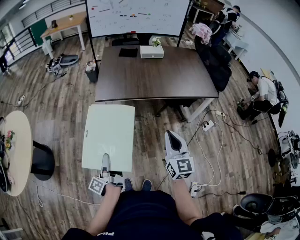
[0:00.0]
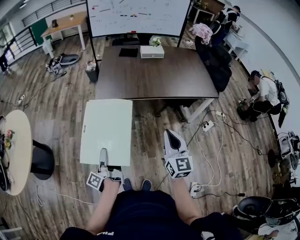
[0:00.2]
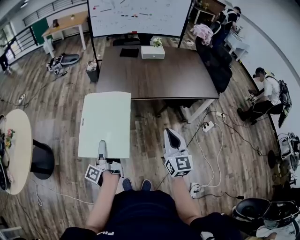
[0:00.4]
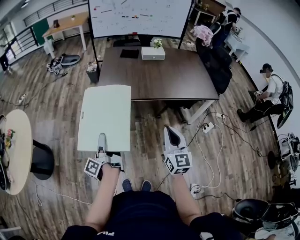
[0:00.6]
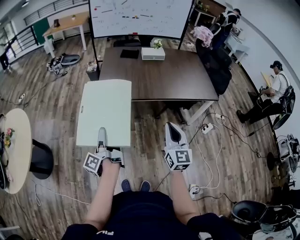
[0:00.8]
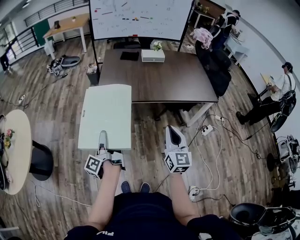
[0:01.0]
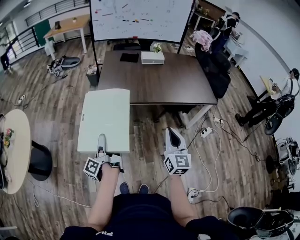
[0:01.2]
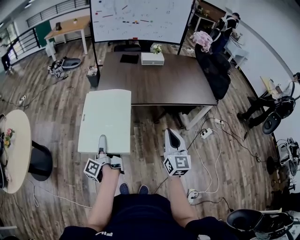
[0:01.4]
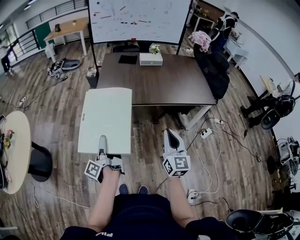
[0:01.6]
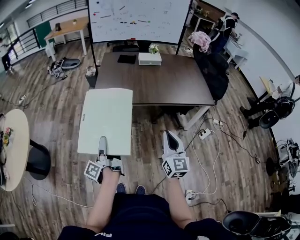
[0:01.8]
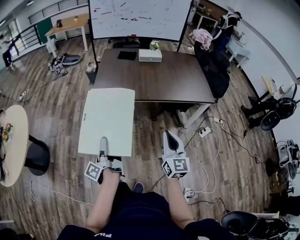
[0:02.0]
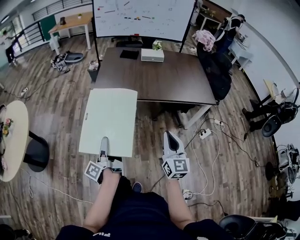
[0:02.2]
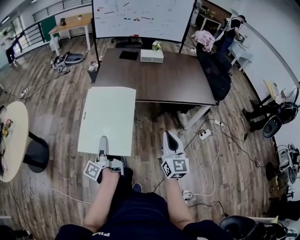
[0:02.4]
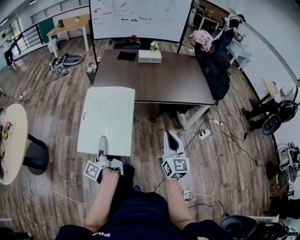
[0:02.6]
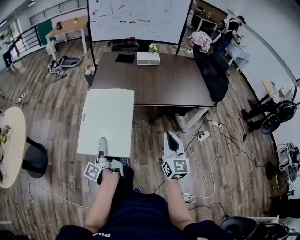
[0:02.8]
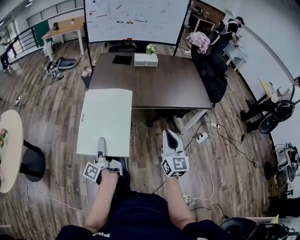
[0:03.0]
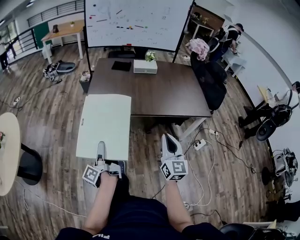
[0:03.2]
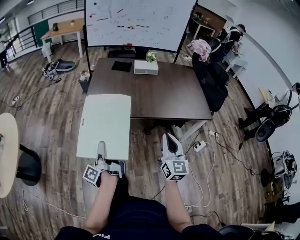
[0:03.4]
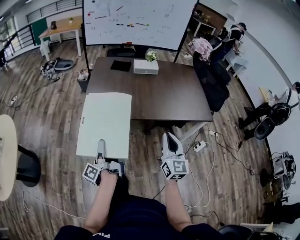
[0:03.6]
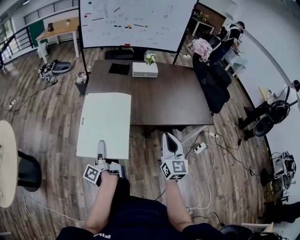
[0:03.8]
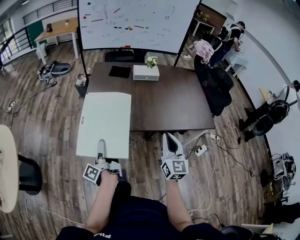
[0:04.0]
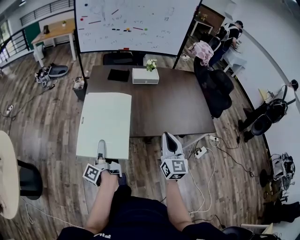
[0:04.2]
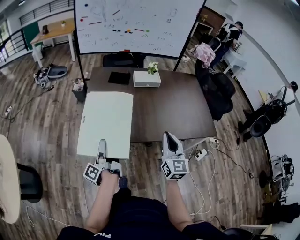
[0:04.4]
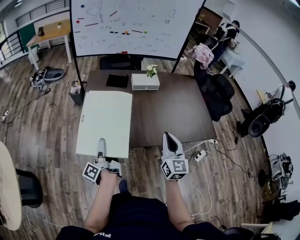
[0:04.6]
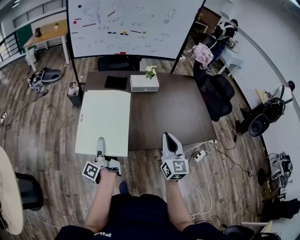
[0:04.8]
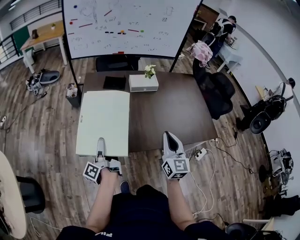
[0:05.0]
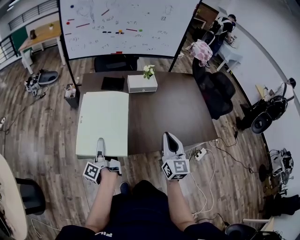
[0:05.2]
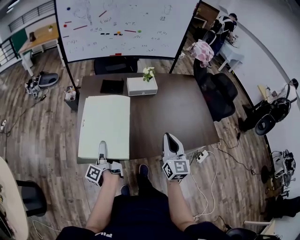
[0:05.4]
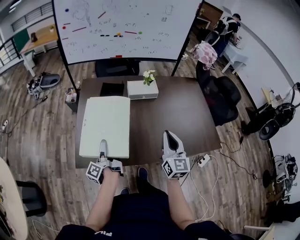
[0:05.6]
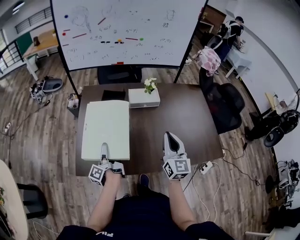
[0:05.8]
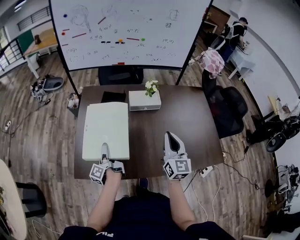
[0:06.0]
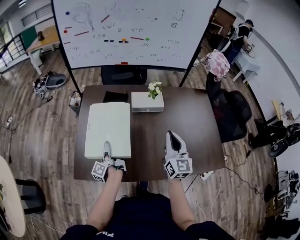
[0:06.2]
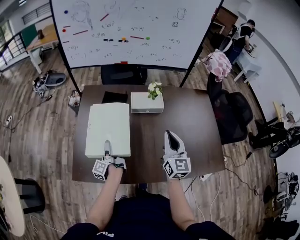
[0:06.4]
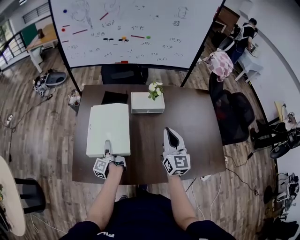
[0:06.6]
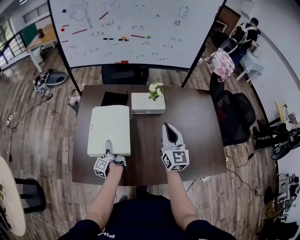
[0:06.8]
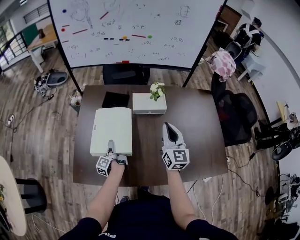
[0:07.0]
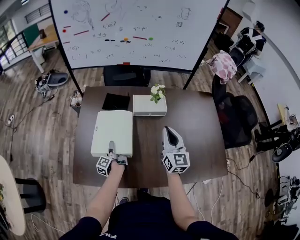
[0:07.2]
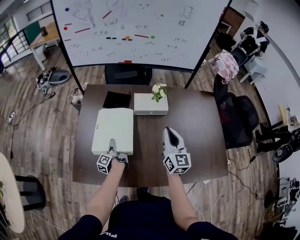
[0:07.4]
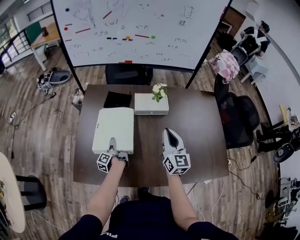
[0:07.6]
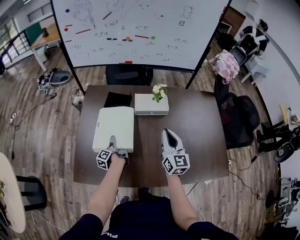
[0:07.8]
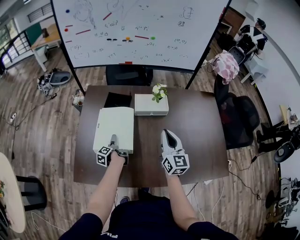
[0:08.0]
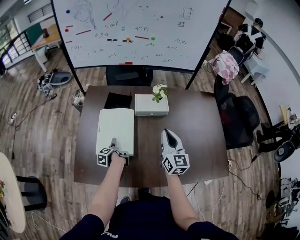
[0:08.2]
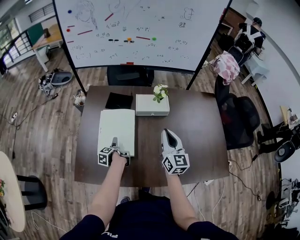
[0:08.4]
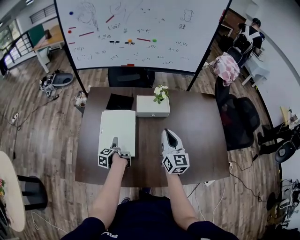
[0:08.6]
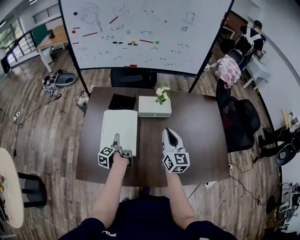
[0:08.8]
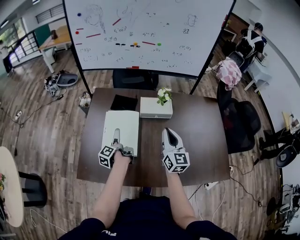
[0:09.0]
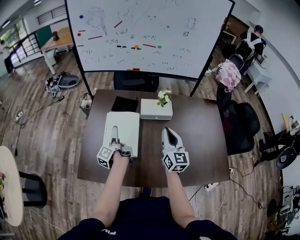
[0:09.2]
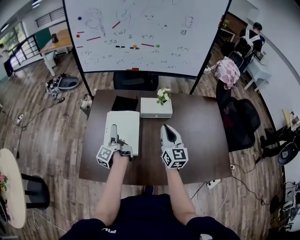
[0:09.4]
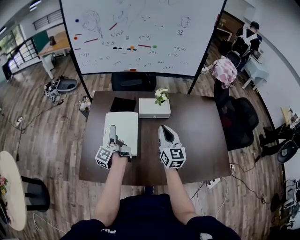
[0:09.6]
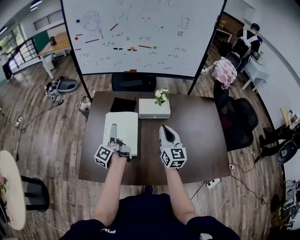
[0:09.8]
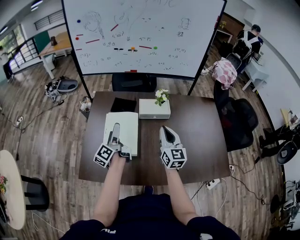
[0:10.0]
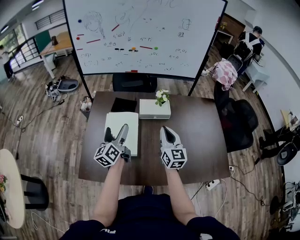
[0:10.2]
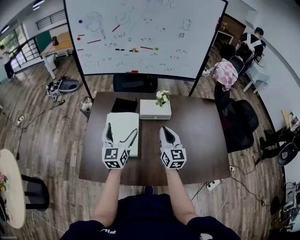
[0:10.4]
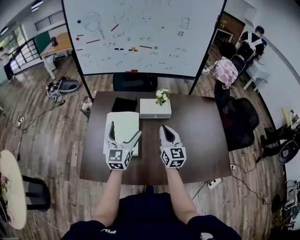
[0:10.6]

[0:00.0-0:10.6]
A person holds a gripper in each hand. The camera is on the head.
0:01.6 to 0:03.0: The right gripper moves about 10 cm.
0:03.0 to 0:04.6: The right gripper moves roughly 35 cm.
0:04.6 to 0:06.0: The right gripper ends up roughly 25 cm from where it was.
0:06.0 to 0:07.6: The right gripper ends up approximately 15 cm from where it was.

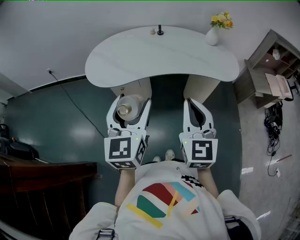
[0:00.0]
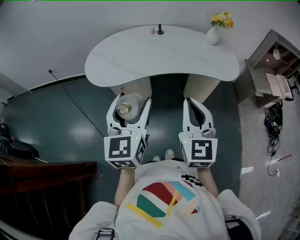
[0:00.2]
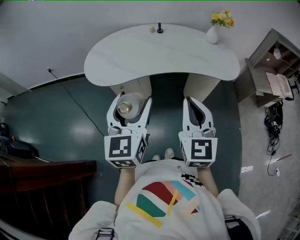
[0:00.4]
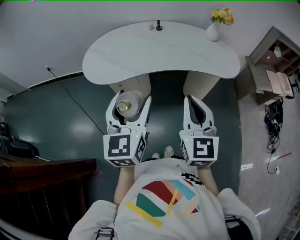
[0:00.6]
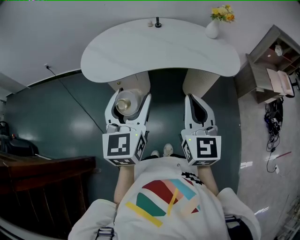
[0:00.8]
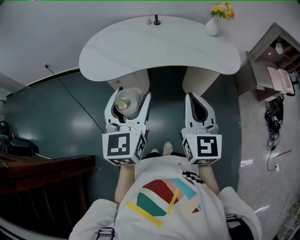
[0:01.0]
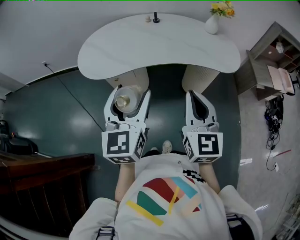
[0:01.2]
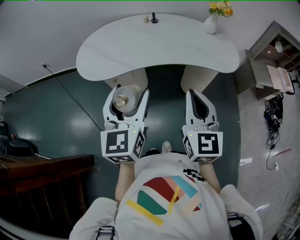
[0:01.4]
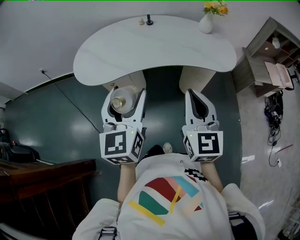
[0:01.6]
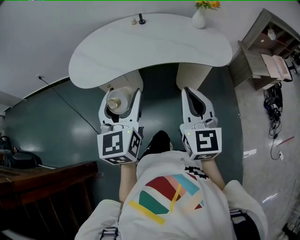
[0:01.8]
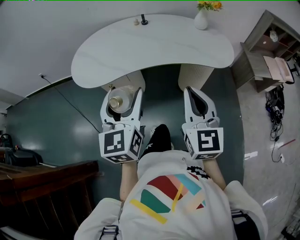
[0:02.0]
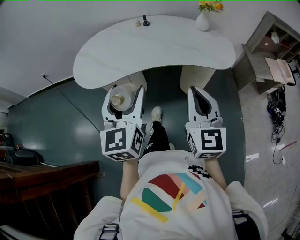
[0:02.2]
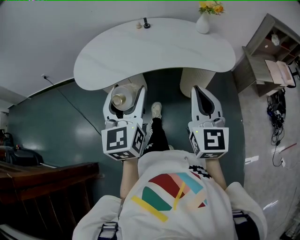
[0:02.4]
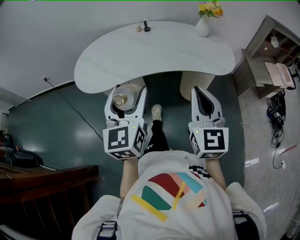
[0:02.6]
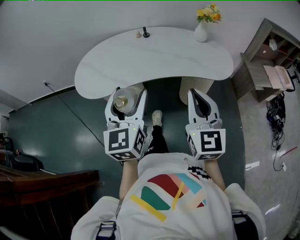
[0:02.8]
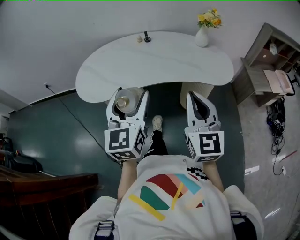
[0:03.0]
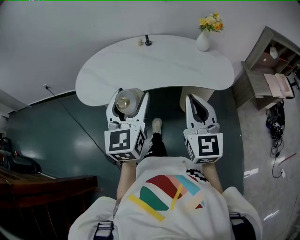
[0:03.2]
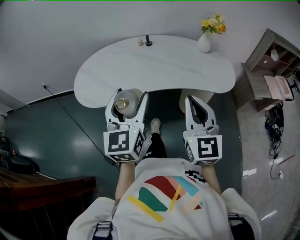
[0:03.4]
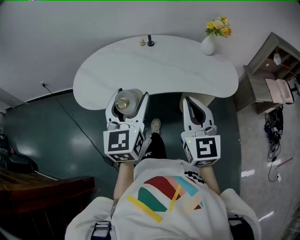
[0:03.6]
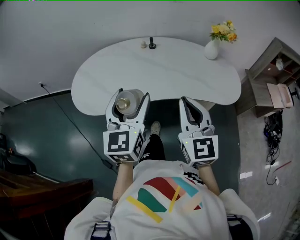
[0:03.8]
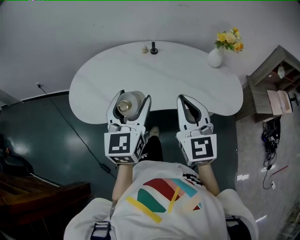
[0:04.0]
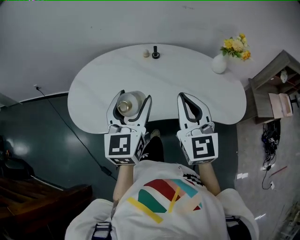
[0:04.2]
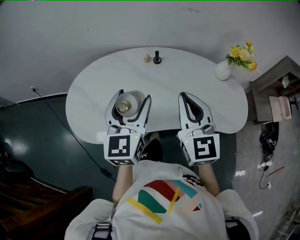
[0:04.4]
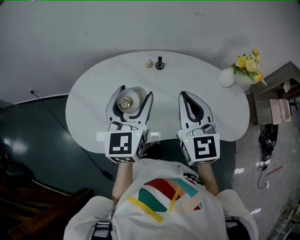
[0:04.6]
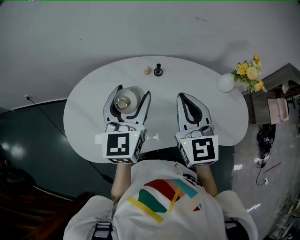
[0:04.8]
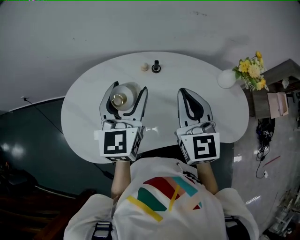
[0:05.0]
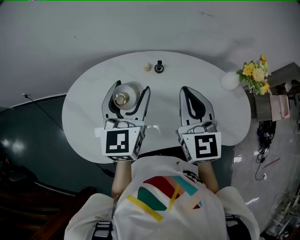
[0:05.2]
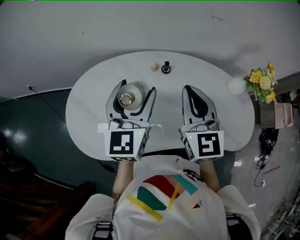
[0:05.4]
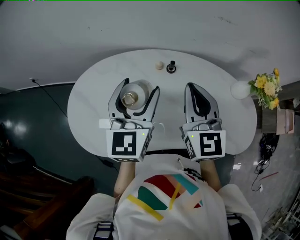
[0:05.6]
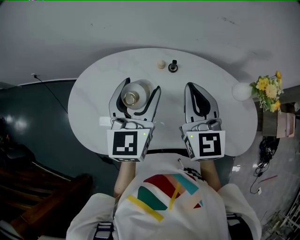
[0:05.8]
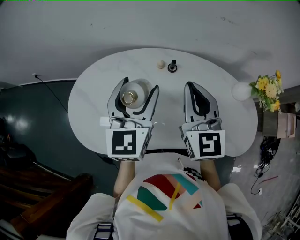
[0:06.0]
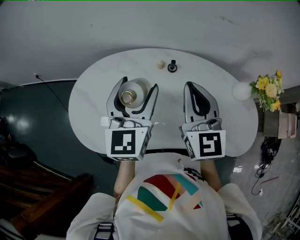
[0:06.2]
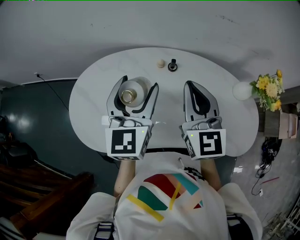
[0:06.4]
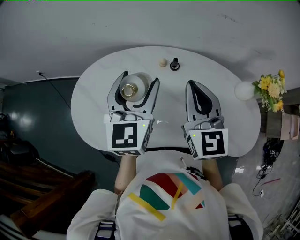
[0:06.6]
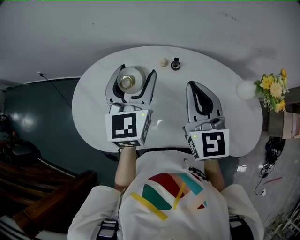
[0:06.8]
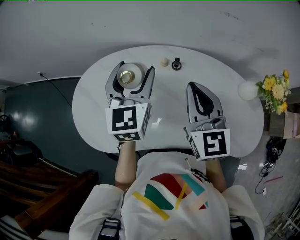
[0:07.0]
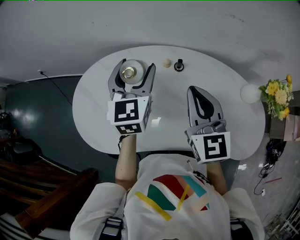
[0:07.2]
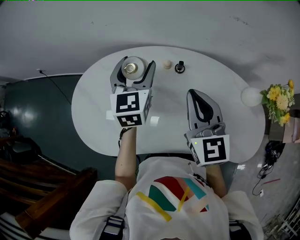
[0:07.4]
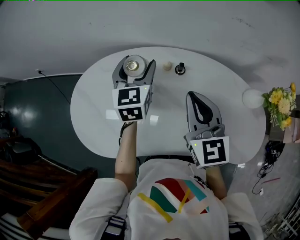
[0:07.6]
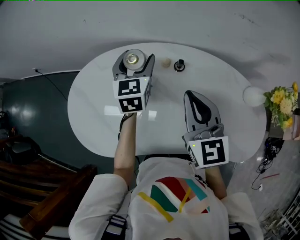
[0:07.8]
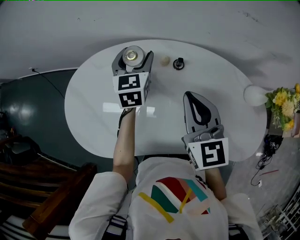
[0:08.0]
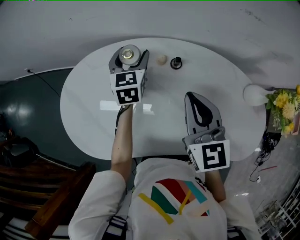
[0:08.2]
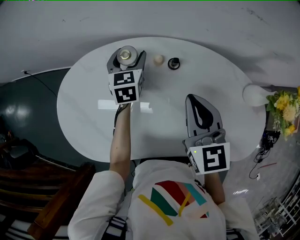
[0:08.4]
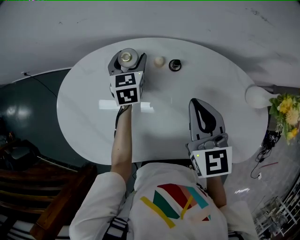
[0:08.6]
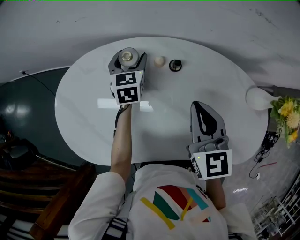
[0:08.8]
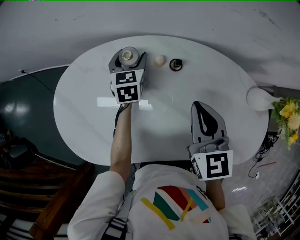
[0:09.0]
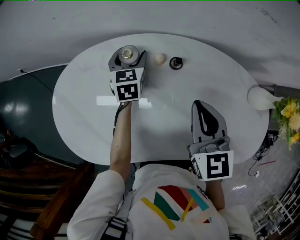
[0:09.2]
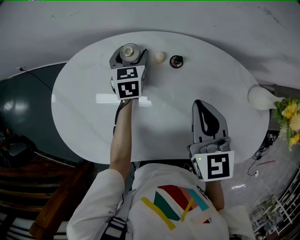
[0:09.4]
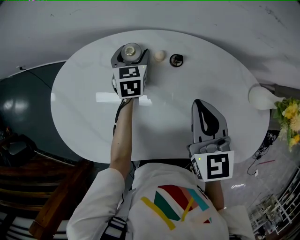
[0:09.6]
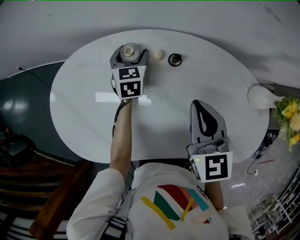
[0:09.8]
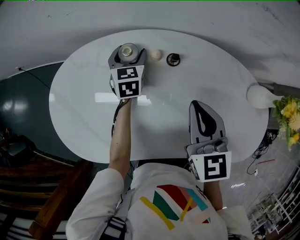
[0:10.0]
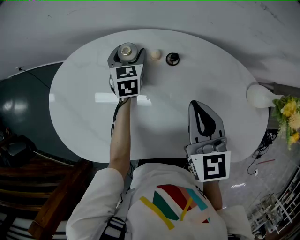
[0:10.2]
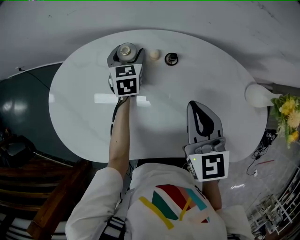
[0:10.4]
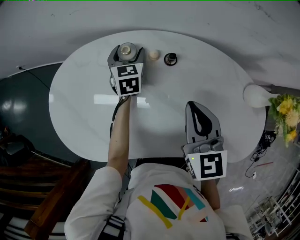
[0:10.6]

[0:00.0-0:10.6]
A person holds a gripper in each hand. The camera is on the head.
0:00.0 to 0:01.6: The right gripper travels to the right by roughly 5 cm. Meanwhile the left gripper ends up about 5 cm from where it was.
0:01.6 to 0:03.0: The left gripper moves roughly 5 cm; the right gripper ends up approximately 5 cm from where it was.
0:03.0 to 0:04.6: The two grippers go approximately 35 cm forward.
0:04.6 to 0:06.0: The two grippers go about 10 cm forward.
0:06.0 to 0:07.6: The right gripper travels downward by approximately 5 cm. The left gripper moves forward and downward, approximately 15 cm.
0:07.6 to 0:09.0: The right gripper heads downward, covering approximately 10 cm. The left gripper moves downward and forward, some 20 cm.
0:09.0 to 0:10.6: The grippers stay close to where they were, moving slightly.

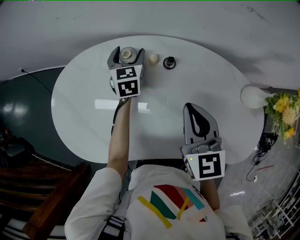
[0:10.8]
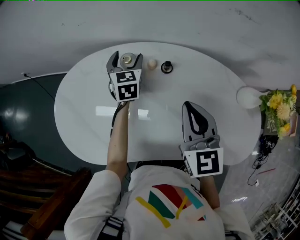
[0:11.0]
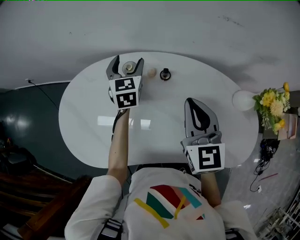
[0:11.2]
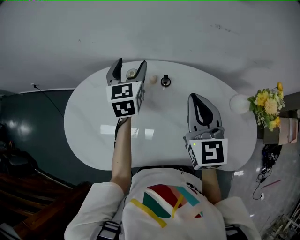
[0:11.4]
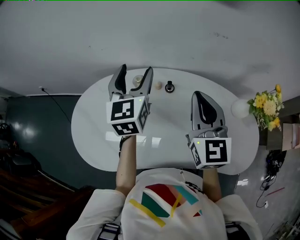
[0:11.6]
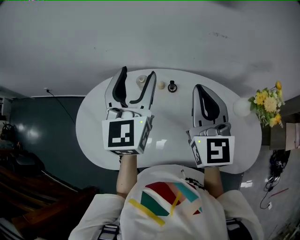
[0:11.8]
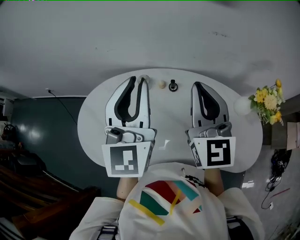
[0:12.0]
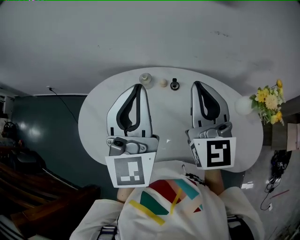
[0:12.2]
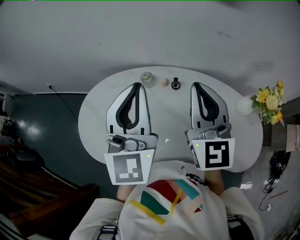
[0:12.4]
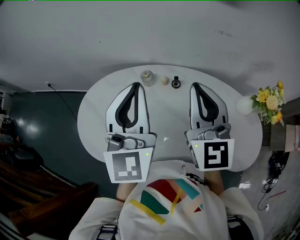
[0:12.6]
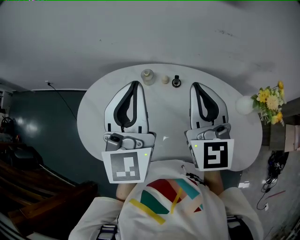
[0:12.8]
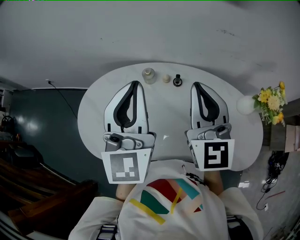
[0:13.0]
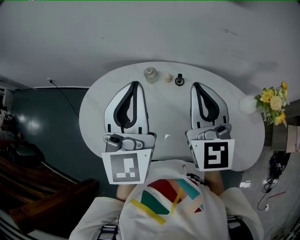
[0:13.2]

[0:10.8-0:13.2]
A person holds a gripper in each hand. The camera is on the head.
0:10.8 to 0:12.0: The left gripper shifts roughly 40 cm upward and backward, angles its fingers upward, by about 40 degrees, and closes up, while the right gripper moves upward, some 20 cm, and turns by approximately 30 degrees.
0:12.0 to 0:13.2: The grippers make only small movements.
